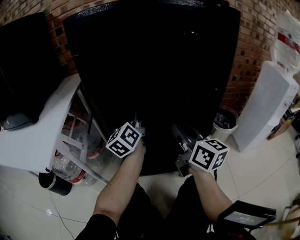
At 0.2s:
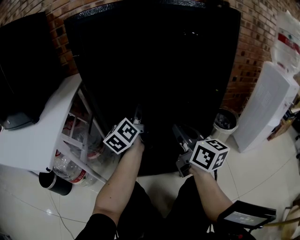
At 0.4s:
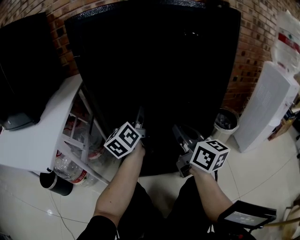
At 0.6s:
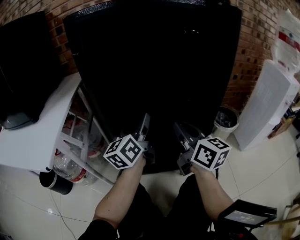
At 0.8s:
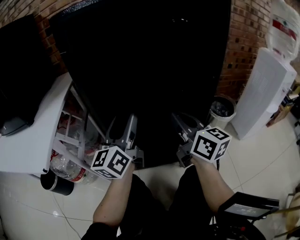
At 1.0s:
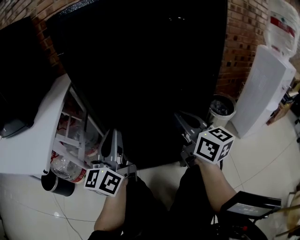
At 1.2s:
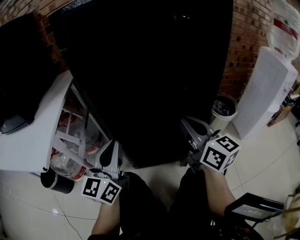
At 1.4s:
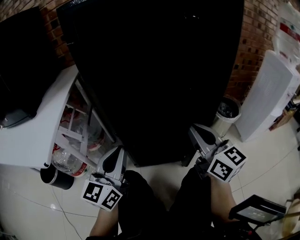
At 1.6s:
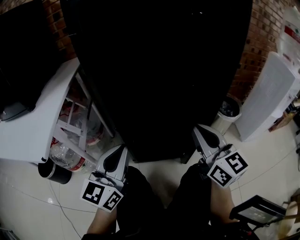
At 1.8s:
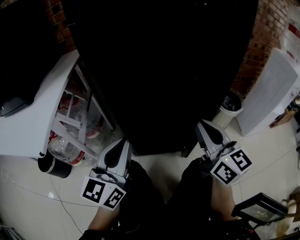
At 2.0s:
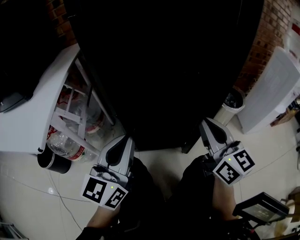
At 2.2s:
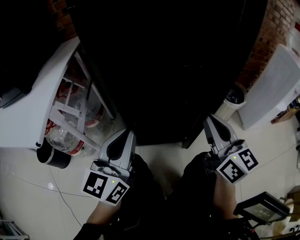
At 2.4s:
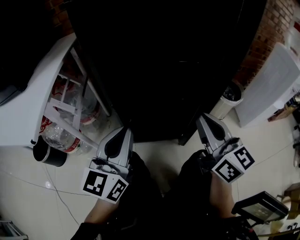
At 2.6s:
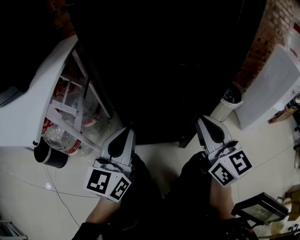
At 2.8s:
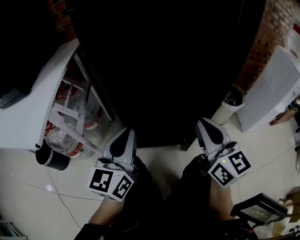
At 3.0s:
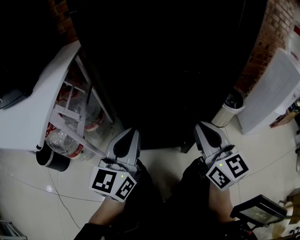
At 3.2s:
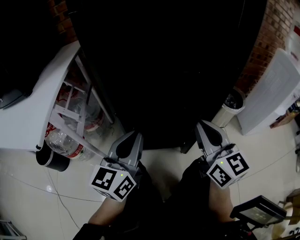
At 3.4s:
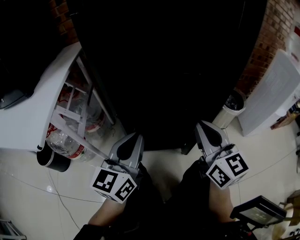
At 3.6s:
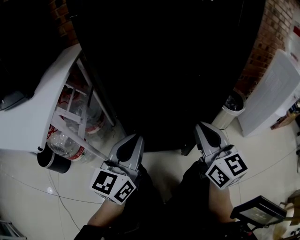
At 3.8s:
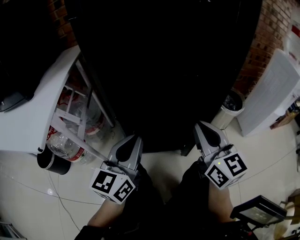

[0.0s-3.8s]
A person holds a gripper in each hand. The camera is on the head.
0.0s to 1.2s: The left gripper shifts approximately 15 cm backward, changes its angle by roughly 30 degrees, and closes.
1.2s to 2.6s: The right gripper travels backward by approximately 5 cm. Meanwhile the left gripper shifts by about 5 cm.
2.6s to 3.8s: The grippers move only a little.

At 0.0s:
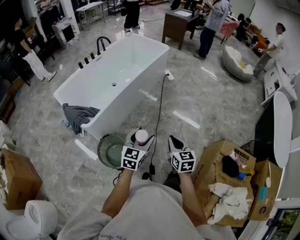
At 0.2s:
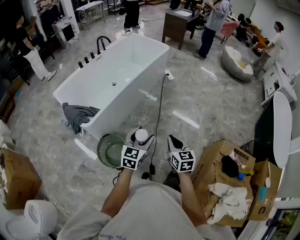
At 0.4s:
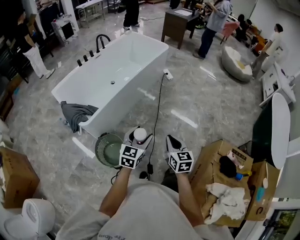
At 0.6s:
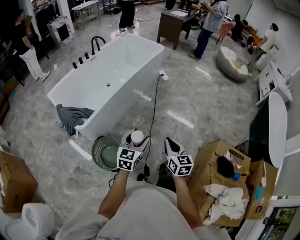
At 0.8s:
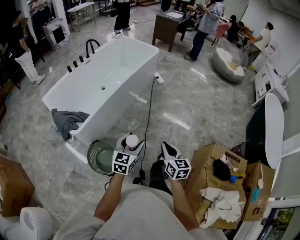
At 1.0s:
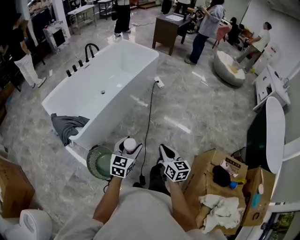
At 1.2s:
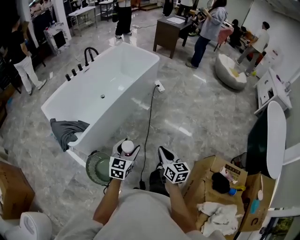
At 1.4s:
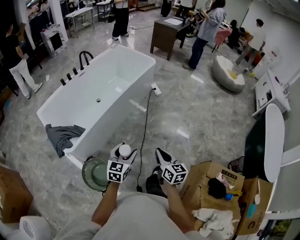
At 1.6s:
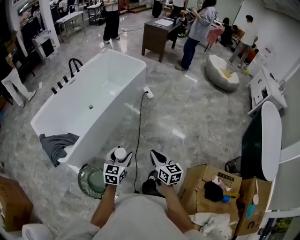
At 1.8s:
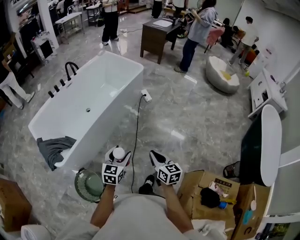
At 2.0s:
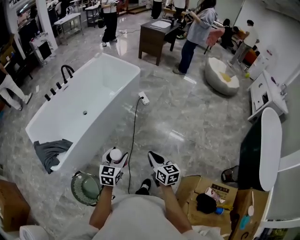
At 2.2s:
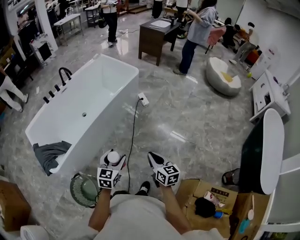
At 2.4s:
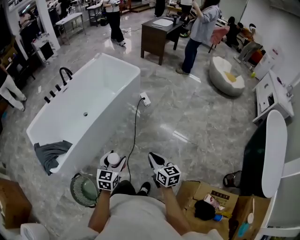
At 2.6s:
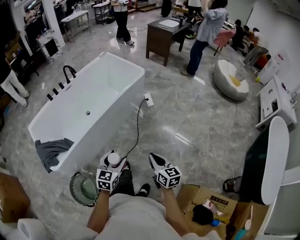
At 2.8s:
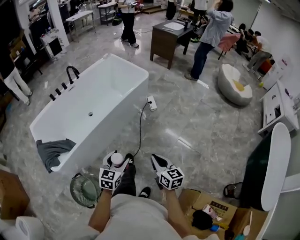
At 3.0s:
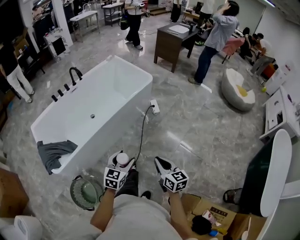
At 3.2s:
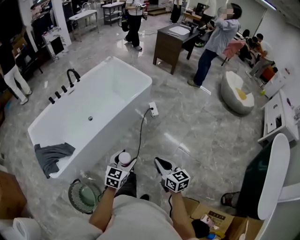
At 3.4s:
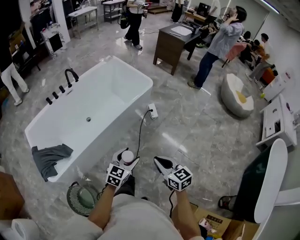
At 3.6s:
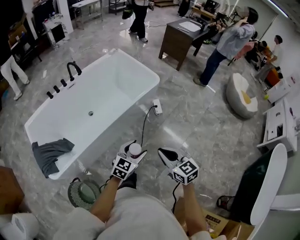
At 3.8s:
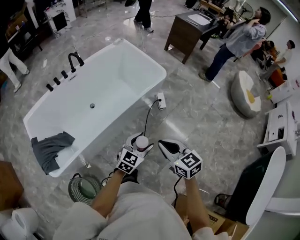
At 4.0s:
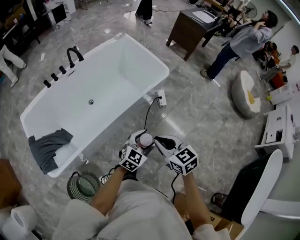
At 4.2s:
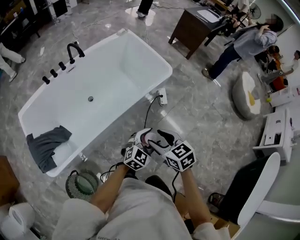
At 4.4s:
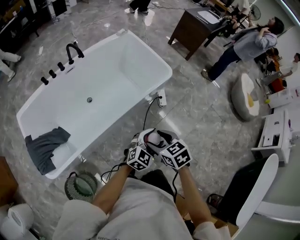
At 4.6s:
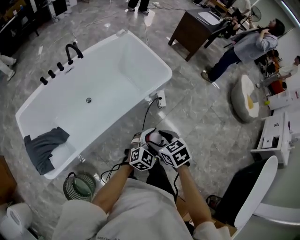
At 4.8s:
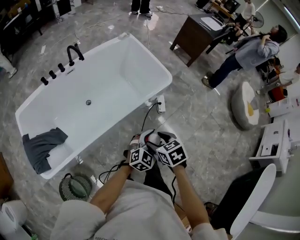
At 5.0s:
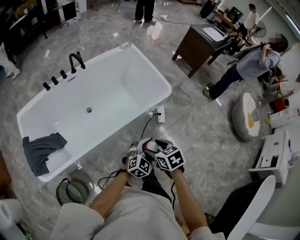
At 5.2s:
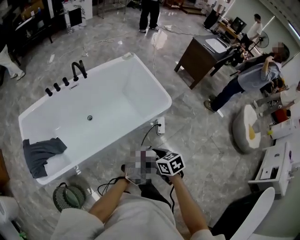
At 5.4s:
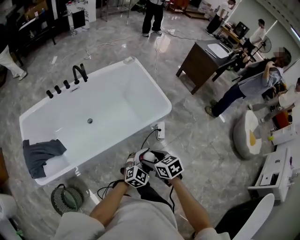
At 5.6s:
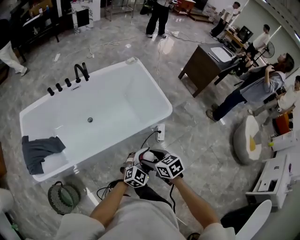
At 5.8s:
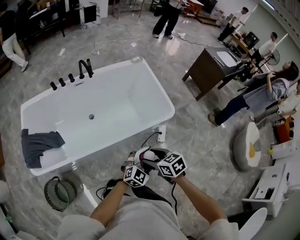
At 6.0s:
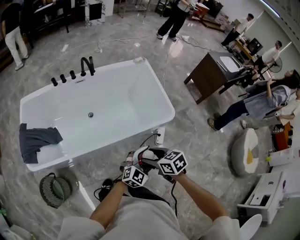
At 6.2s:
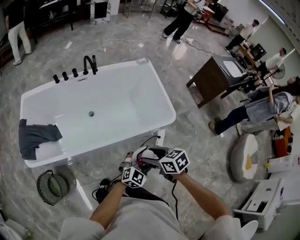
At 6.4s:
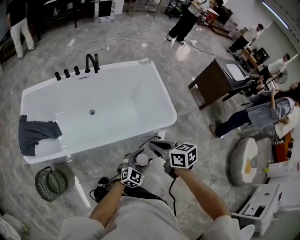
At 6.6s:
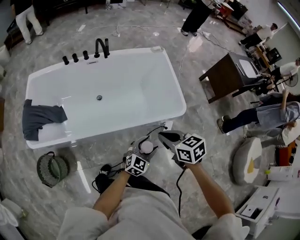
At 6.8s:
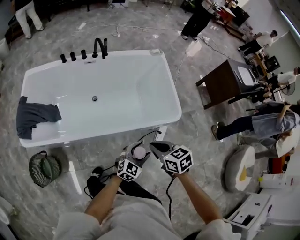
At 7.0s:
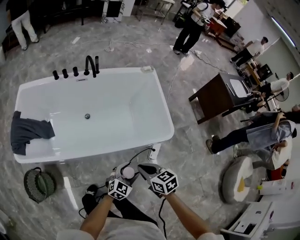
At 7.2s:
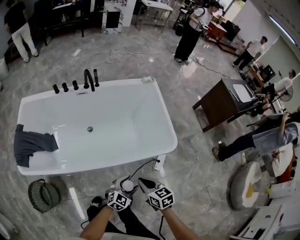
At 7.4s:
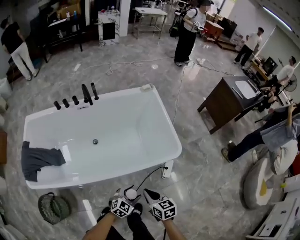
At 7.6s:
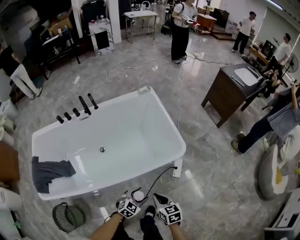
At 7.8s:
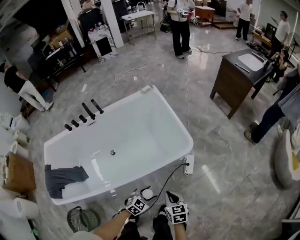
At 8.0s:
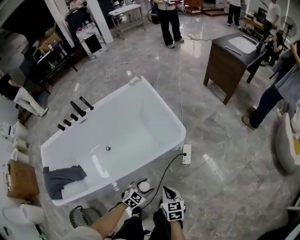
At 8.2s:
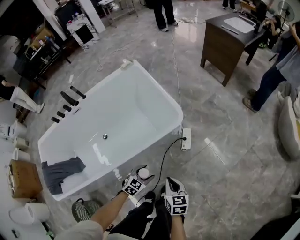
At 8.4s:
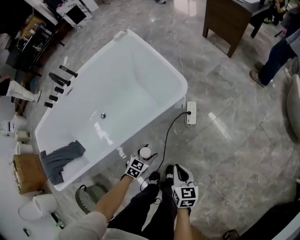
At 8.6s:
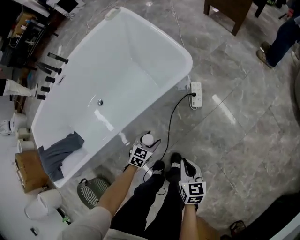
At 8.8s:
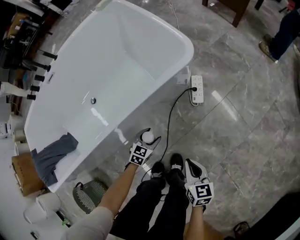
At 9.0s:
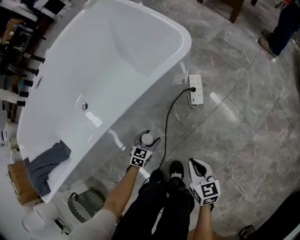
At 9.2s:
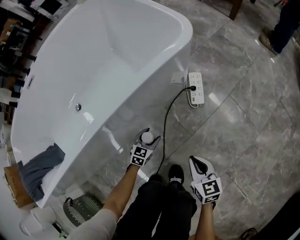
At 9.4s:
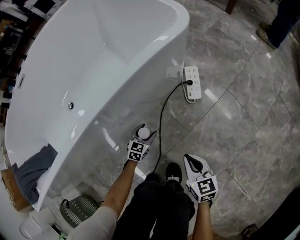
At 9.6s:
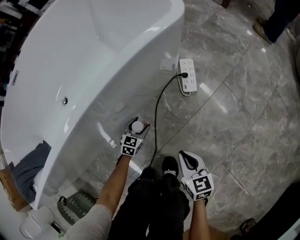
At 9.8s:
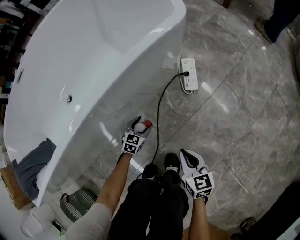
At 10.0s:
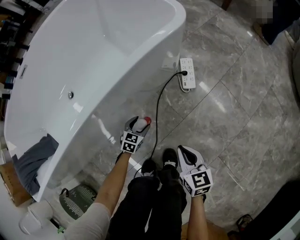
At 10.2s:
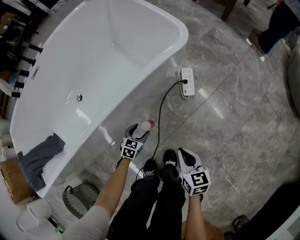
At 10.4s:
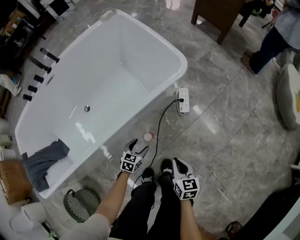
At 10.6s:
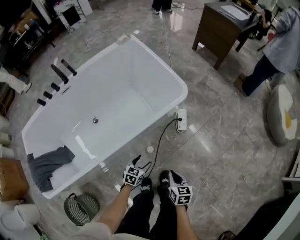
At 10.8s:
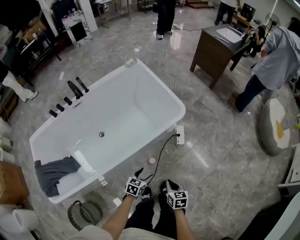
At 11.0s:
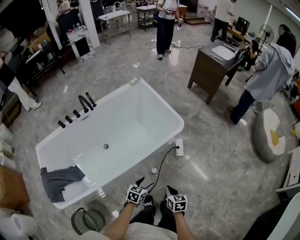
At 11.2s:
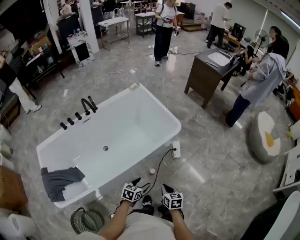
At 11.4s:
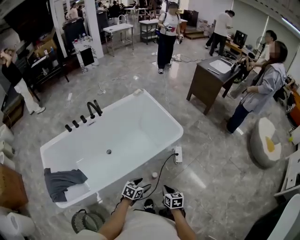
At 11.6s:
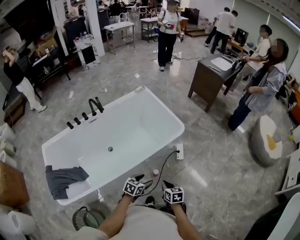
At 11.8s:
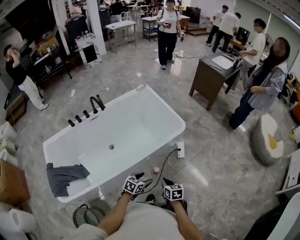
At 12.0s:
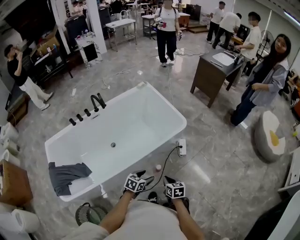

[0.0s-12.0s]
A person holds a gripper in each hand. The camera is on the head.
0.0s to 1.6s: The grippers both shift forward by approximately 20 cm.
1.6s to 3.0s: Both grippers travel together forward and to the right, some 25 cm.
3.0s to 4.4s: The right gripper goes about 35 cm forward and to the left, tilts its fingers roughly 30 degrees downward, and opens; the left gripper moves forward, about 30 cm, and swivels roughly 20 degrees.
4.4s to 6.0s: The left gripper moves some 15 cm, and rotates about 20 degrees. Meanwhile the right gripper ends up roughly 15 cm from where it was, and swivels some 20 degrees.
6.0s to 7.6s: The right gripper shifts roughly 15 cm downward and to the right, swivels approximately 20 degrees, and closes; the left gripper goes approximately 20 cm downward, and changes its angle by about 30 degrees.
7.6s to 9.0s: The left gripper shifts some 40 cm downward. Meanwhile the right gripper is displaced downward and to the right by approximately 40 cm, and swivels some 20 degrees.
9.0s to 10.4s: The left gripper shifts roughly 15 cm upward and backward; the right gripper heads upward and to the left, covering some 15 cm.
10.4s to 12.0s: The left gripper is displaced upward by about 40 cm; the right gripper shifts about 30 cm upward, to the left and backward.

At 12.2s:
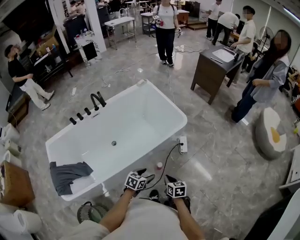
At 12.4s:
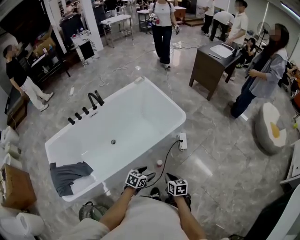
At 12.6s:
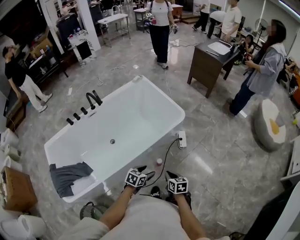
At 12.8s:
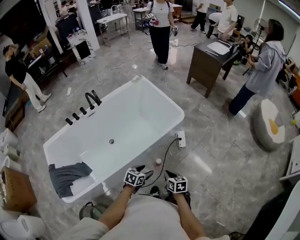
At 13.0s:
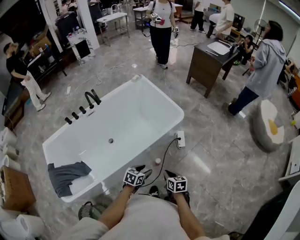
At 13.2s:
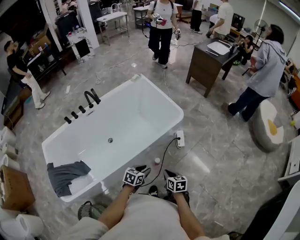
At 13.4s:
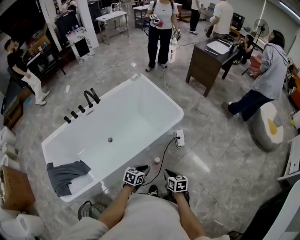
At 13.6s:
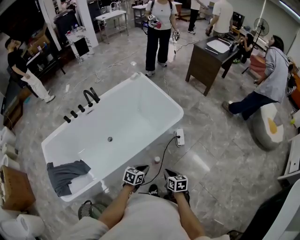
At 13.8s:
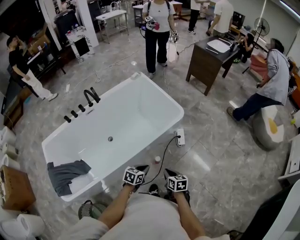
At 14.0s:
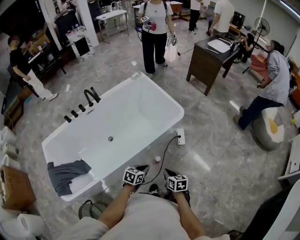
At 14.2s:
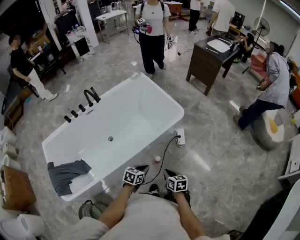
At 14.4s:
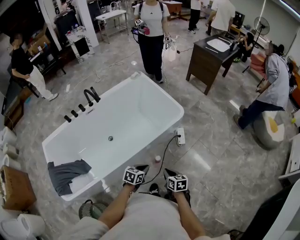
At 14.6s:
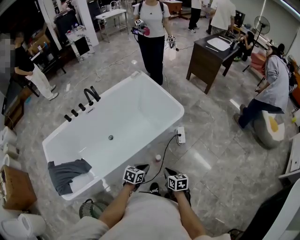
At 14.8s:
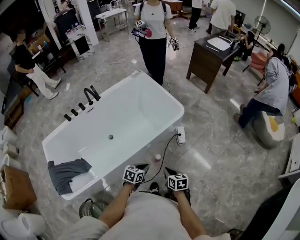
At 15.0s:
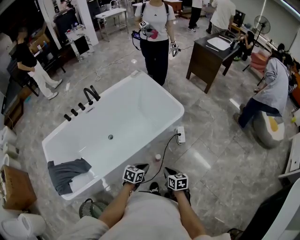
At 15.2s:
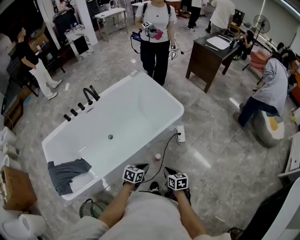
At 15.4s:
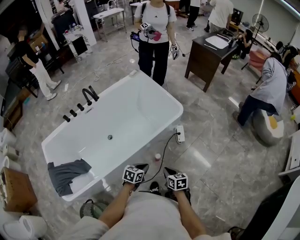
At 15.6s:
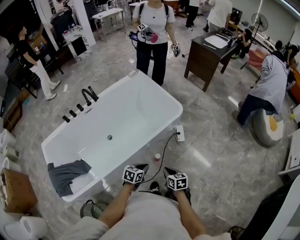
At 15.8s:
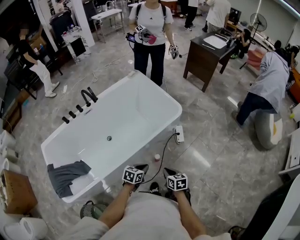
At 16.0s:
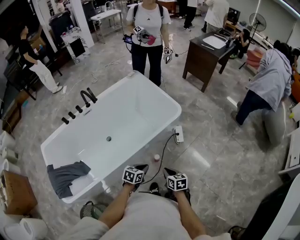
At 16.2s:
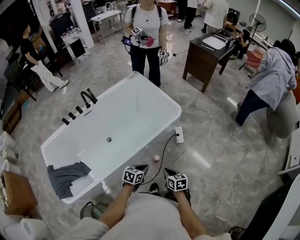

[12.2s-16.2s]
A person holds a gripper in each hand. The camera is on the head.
12.2s to 13.6s: The left gripper closes up.
13.6s to 14.8s: The two grippers keep their place.
14.8s to 16.2s: Both grippers stay put.

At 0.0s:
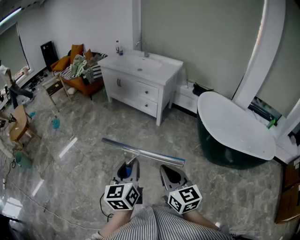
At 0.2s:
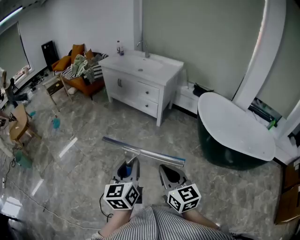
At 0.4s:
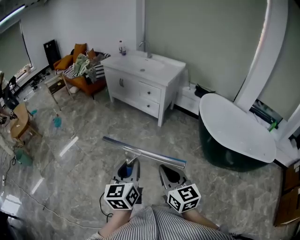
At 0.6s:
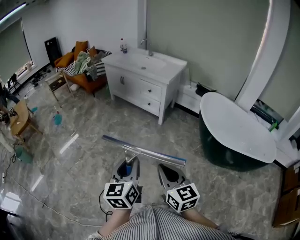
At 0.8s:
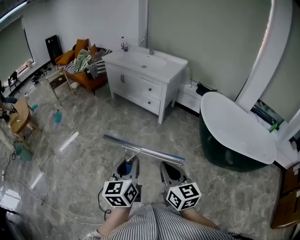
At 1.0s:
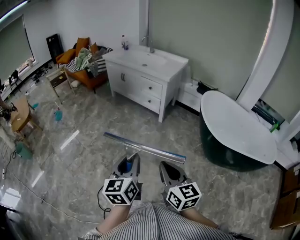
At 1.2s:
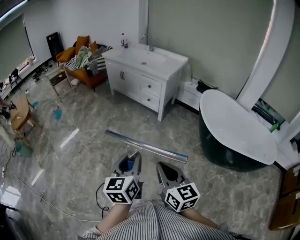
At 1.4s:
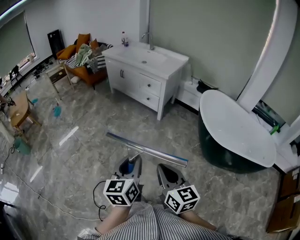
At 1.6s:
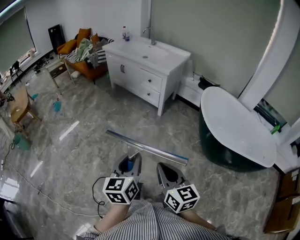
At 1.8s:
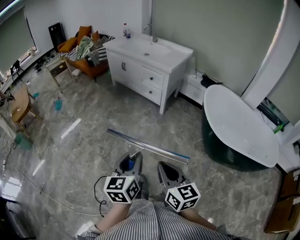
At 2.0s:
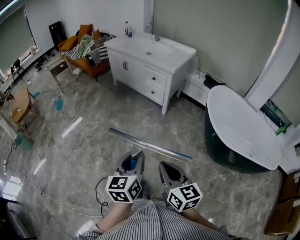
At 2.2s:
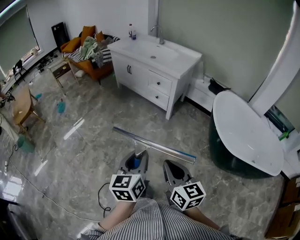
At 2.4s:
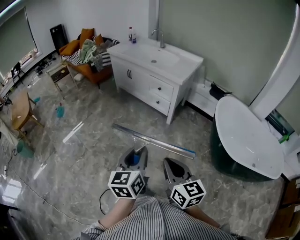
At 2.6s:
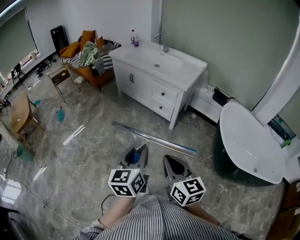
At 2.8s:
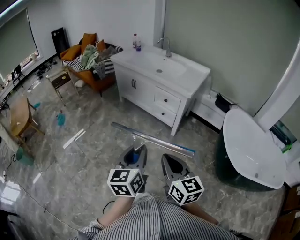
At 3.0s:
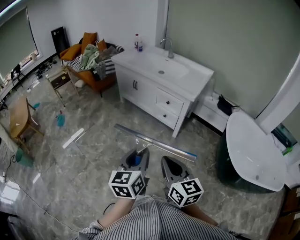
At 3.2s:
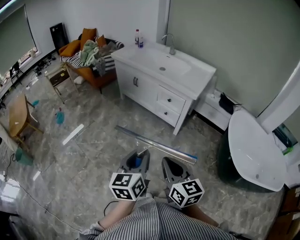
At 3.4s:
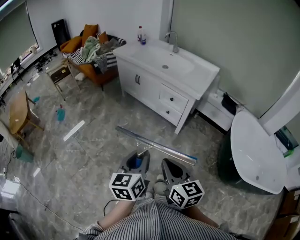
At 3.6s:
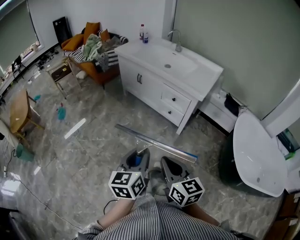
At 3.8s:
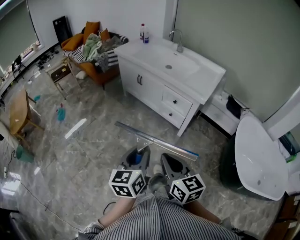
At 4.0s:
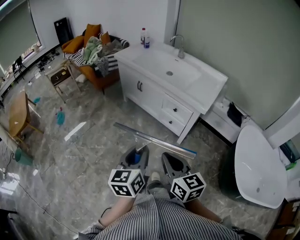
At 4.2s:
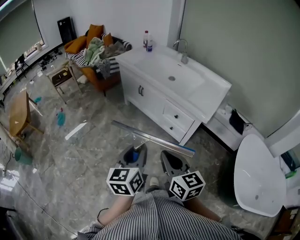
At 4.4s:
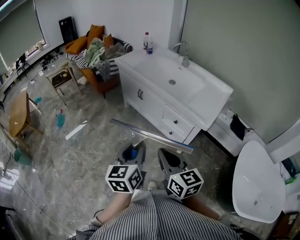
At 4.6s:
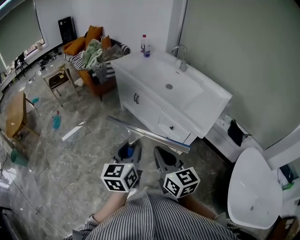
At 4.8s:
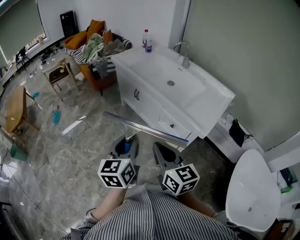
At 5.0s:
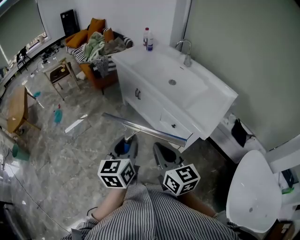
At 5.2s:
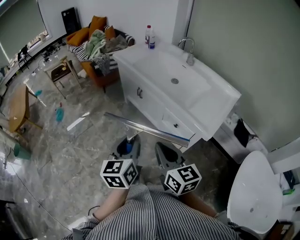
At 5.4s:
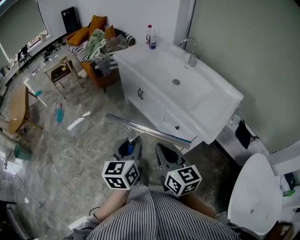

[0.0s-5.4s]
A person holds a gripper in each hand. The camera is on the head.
0.0s to 1.4s: The left gripper is displaced to the right by roughly 5 cm.
1.4s to 2.8s: Both grippers move forward, about 30 cm.
2.8s to 4.0s: The two grippers go roughly 20 cm forward.
4.0s to 5.4s: Both grippers move forward, some 25 cm.
